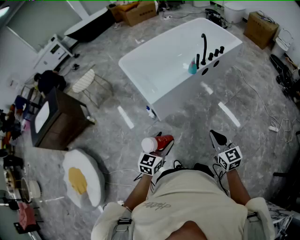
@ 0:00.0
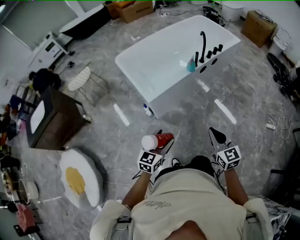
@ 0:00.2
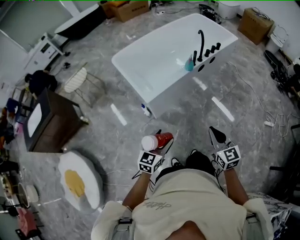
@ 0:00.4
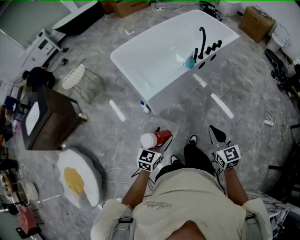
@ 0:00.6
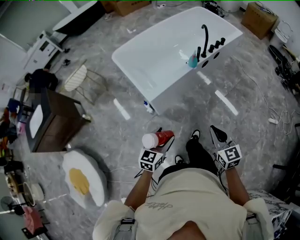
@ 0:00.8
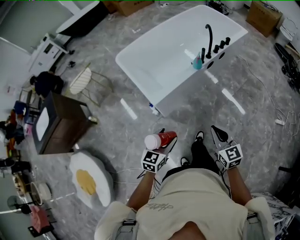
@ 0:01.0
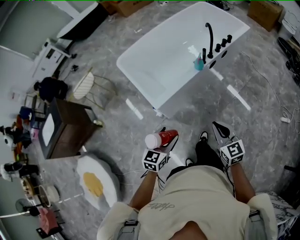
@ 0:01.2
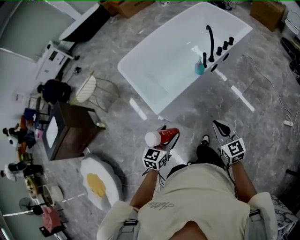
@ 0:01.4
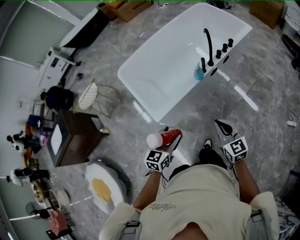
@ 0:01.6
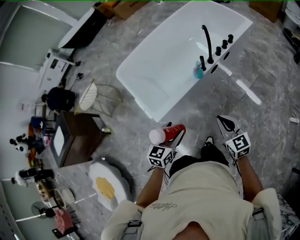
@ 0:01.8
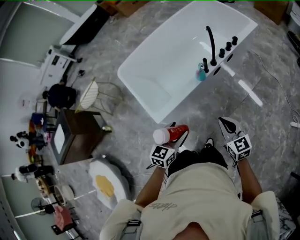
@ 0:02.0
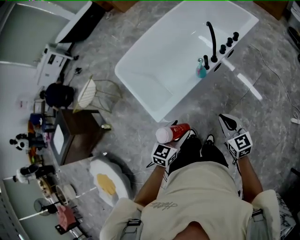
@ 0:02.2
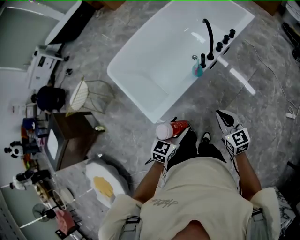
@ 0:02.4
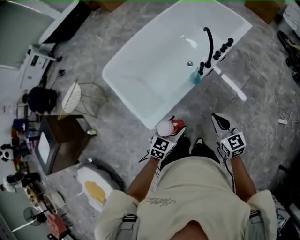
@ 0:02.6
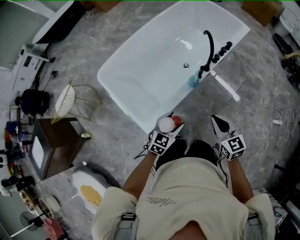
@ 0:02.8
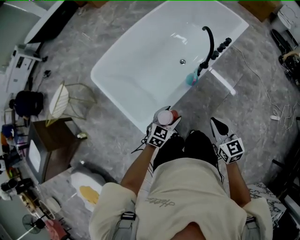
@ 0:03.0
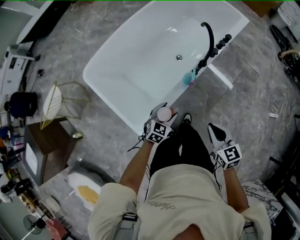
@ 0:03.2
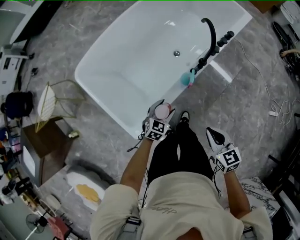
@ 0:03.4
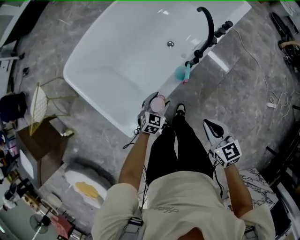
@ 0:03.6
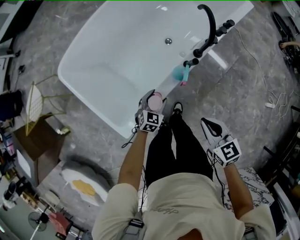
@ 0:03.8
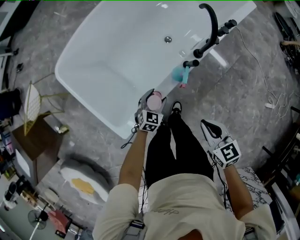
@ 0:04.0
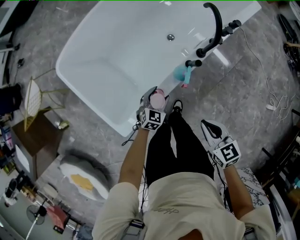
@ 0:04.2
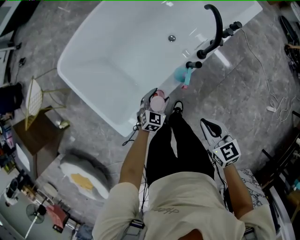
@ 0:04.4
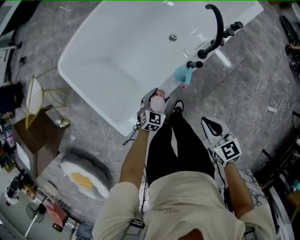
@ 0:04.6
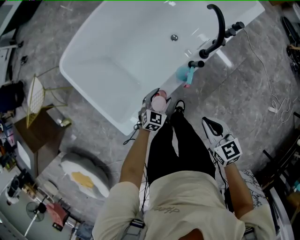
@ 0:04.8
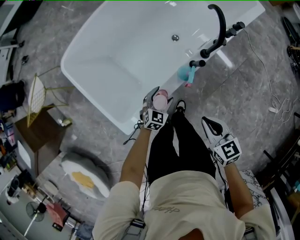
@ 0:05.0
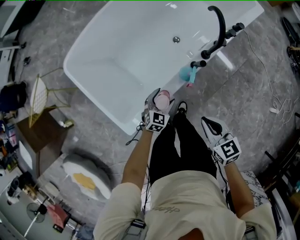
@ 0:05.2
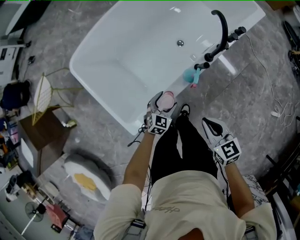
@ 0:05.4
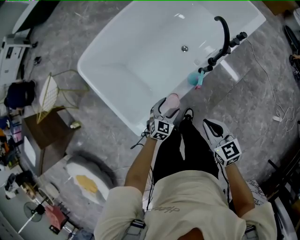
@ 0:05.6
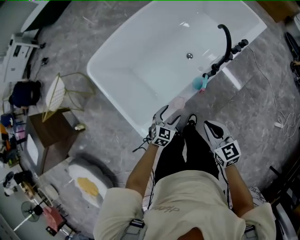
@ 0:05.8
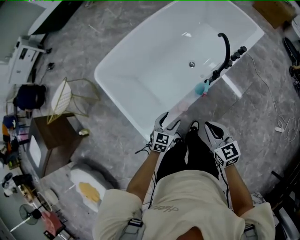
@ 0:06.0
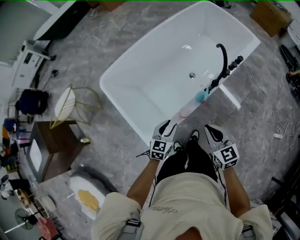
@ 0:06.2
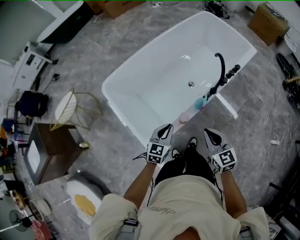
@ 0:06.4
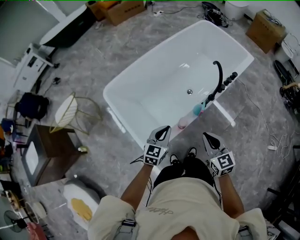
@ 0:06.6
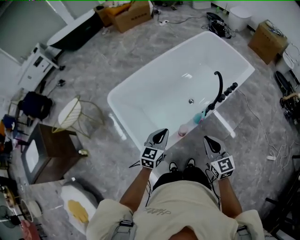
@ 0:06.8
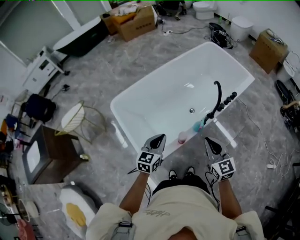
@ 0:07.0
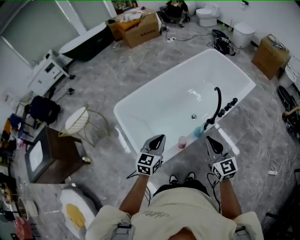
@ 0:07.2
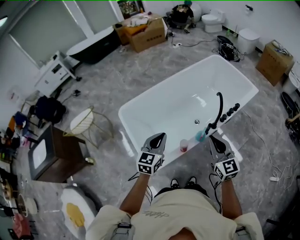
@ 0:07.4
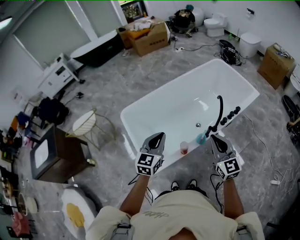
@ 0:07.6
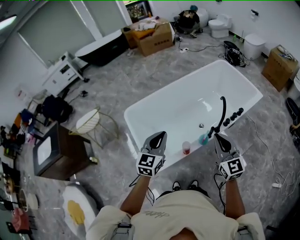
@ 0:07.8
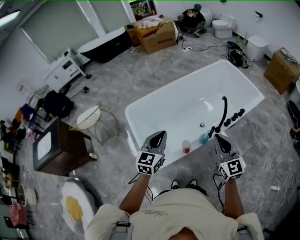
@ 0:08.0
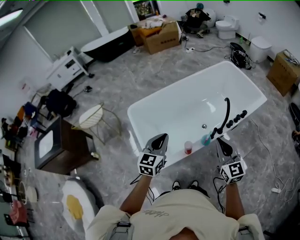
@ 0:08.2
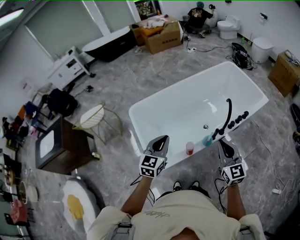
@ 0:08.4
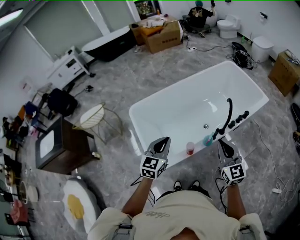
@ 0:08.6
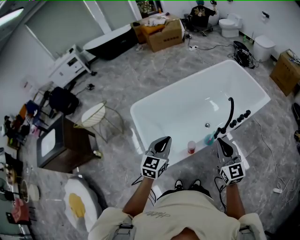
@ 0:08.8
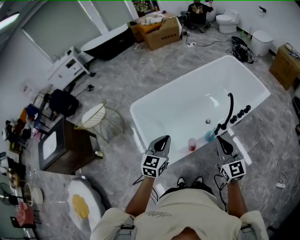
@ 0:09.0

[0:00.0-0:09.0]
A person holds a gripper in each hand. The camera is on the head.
0:00.0 to 0:01.6: The two grippers go some 25 cm forward.
0:01.6 to 0:03.0: The left gripper is displaced forward and downward by some 25 cm, and swivels roughly 20 degrees. The right gripper moves forward, about 15 cm.
0:03.0 to 0:04.4: The right gripper goes approximately 10 cm downward and forward. Meanwhile the left gripper shifts about 20 cm downward and forward.
0:04.4 to 0:06.0: The left gripper is displaced upward, to the left and backward by approximately 15 cm, while the right gripper travels to the left and upward by about 10 cm.
0:06.0 to 0:07.6: The right gripper is displaced upward by some 20 cm, and rotates roughly 30 degrees. Meanwhile the left gripper heads upward, covering roughly 30 cm, changes its angle by some 30 degrees, and closes its fingers.
0:07.6 to 0:09.0: The grippers make only small movements.

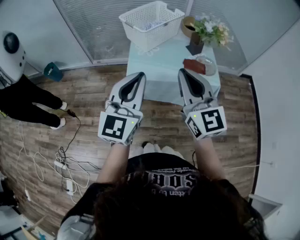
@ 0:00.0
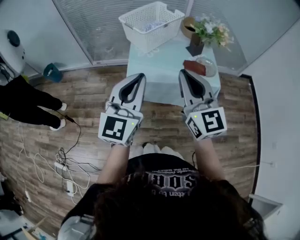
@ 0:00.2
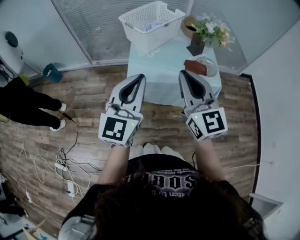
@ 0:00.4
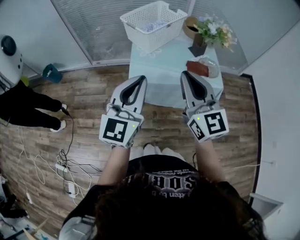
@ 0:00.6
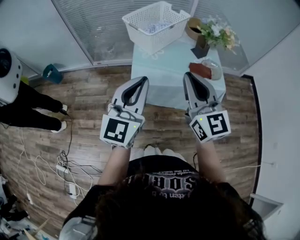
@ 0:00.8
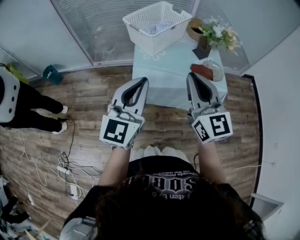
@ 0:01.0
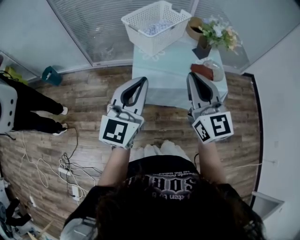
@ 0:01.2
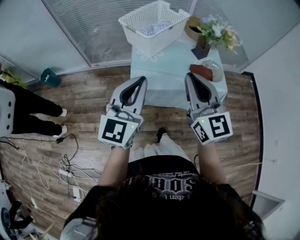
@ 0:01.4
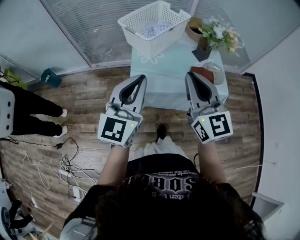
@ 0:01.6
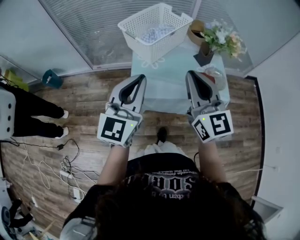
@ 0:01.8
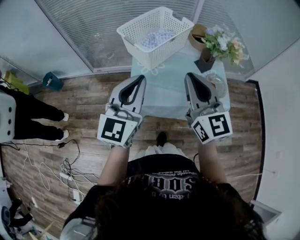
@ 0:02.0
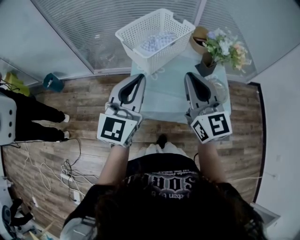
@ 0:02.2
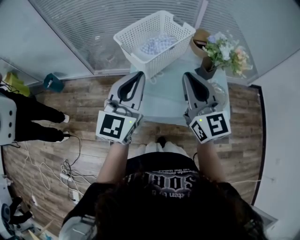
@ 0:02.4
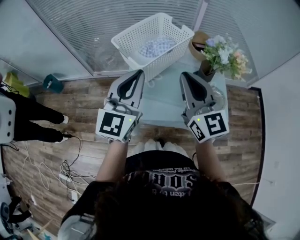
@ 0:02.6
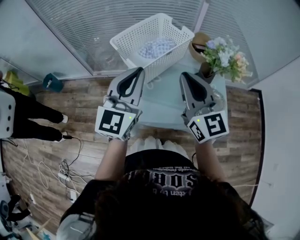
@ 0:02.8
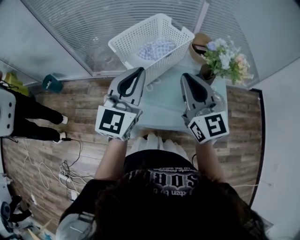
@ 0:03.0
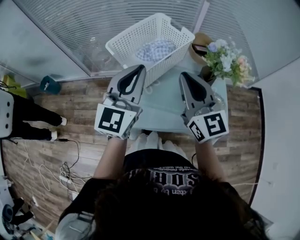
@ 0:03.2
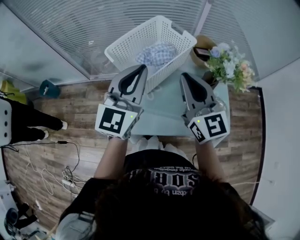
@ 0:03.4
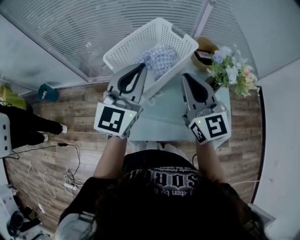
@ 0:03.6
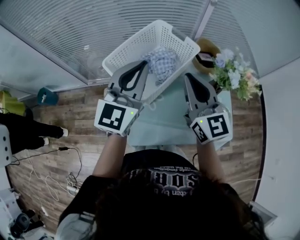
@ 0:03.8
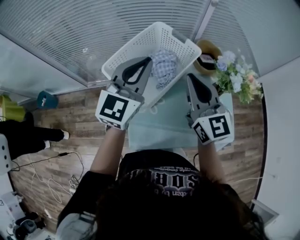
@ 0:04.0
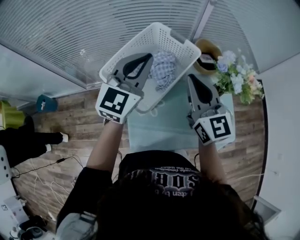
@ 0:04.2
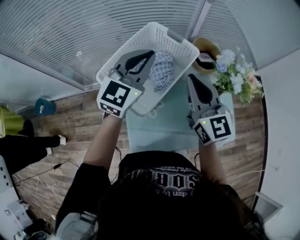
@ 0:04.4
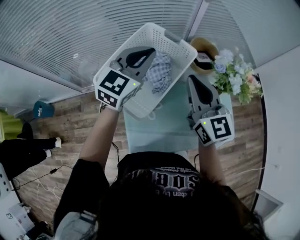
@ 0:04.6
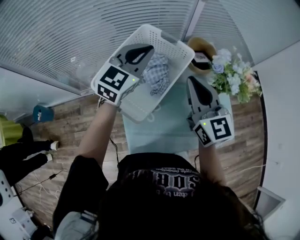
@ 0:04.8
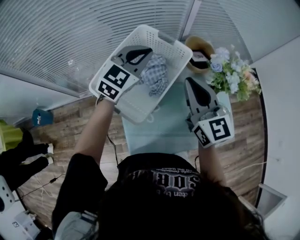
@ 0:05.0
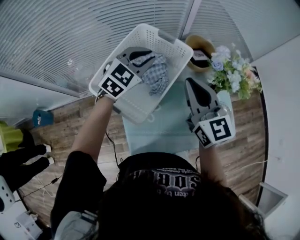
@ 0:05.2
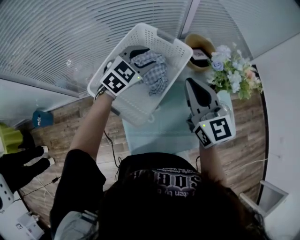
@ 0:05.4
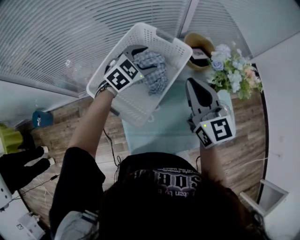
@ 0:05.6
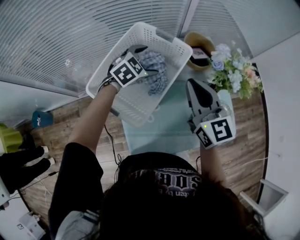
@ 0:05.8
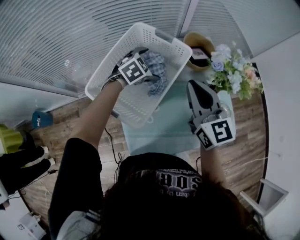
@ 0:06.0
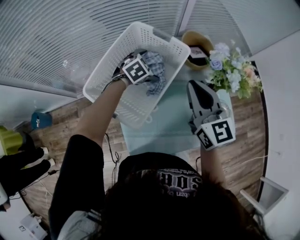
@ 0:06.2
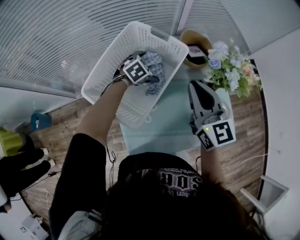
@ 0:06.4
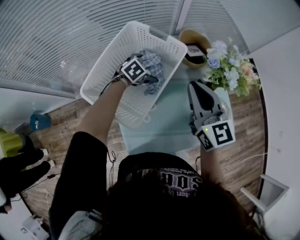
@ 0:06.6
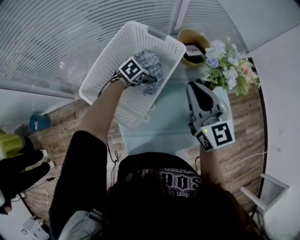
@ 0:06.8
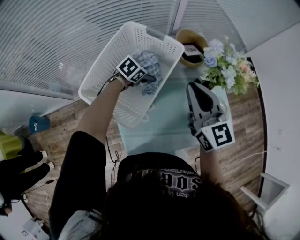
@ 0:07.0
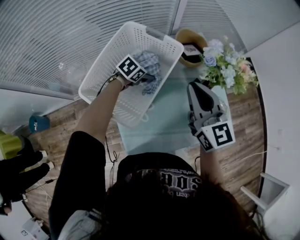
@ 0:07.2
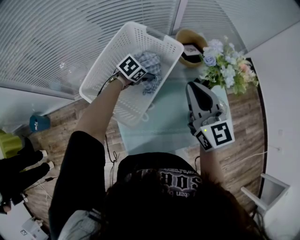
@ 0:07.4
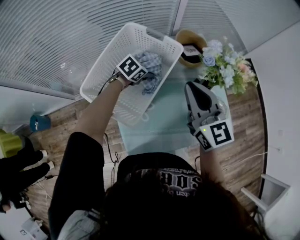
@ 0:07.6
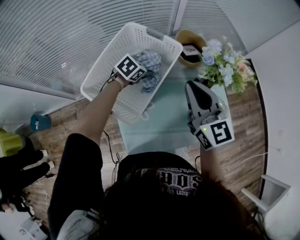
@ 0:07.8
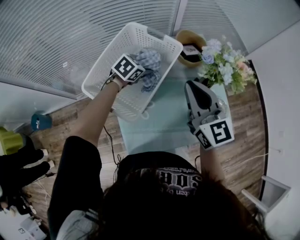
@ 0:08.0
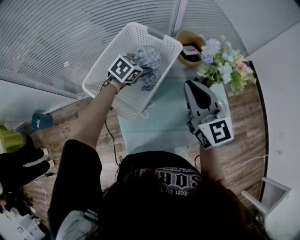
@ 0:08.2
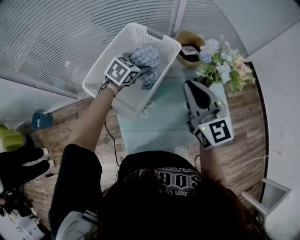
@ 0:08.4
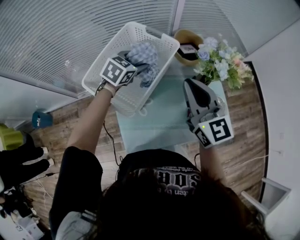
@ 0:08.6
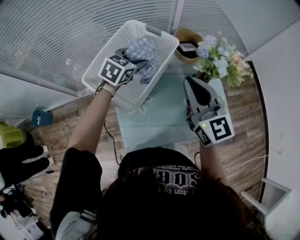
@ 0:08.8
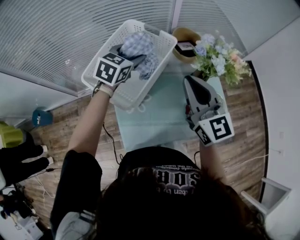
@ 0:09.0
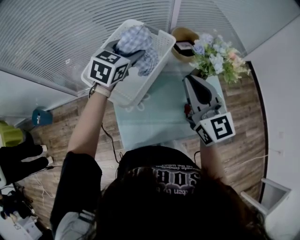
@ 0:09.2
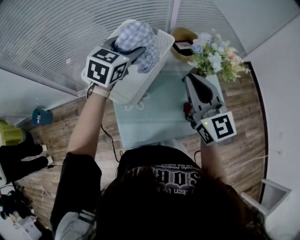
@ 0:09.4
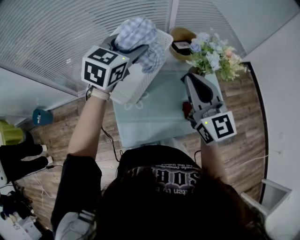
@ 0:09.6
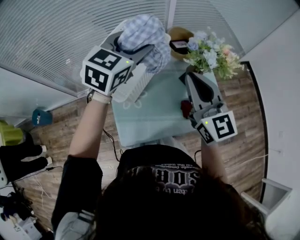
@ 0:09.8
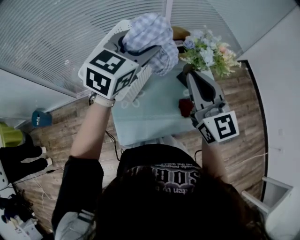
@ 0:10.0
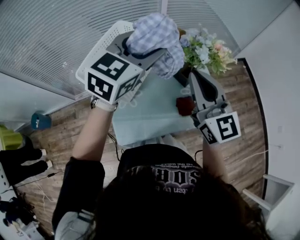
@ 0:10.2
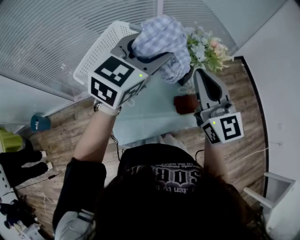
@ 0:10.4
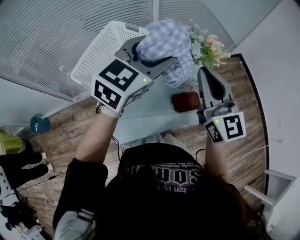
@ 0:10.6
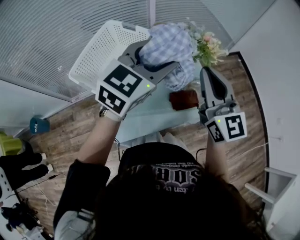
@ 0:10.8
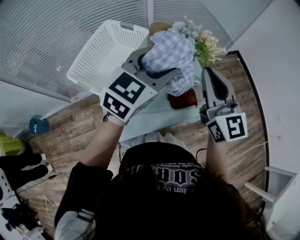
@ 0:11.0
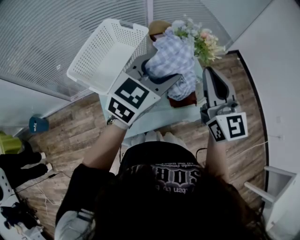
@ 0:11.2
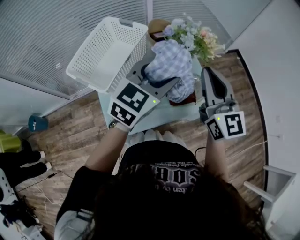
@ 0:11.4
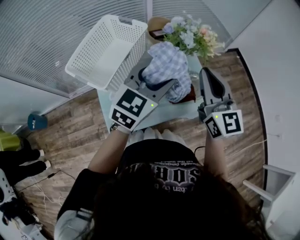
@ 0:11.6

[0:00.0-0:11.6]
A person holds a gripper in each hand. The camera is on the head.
0:00.0 to 0:01.4: Both grippers move forward, approximately 5 cm.
0:01.4 to 0:02.8: Both grippers travel together forward, approximately 20 cm.
0:02.8 to 0:04.4: The grippers both shift forward by roughly 20 cm. The left gripper changes its angle by roughly 20 degrees.
0:04.4 to 0:05.8: The left gripper goes some 20 cm downward and forward, points its fingers about 40 degrees further downward, and opens up.
0:05.8 to 0:07.2: The left gripper shifts approximately 10 cm downward, and changes its angle by some 30 degrees.
0:07.2 to 0:08.8: The left gripper moves upward, some 15 cm, and swivels approximately 30 degrees.
0:08.8 to 0:10.2: The right gripper is displaced to the right and upward by some 10 cm, while the left gripper is displaced upward, to the right and backward by some 25 cm, and turns by approximately 20 degrees.
0:10.2 to 0:11.6: The right gripper goes about 10 cm to the right. The left gripper moves to the right, backward and downward, roughly 15 cm.

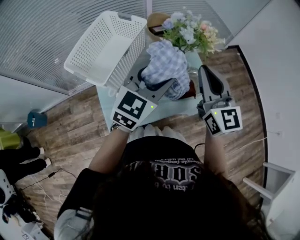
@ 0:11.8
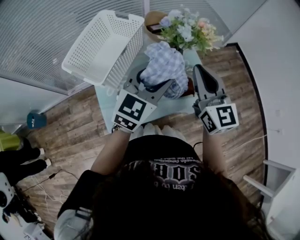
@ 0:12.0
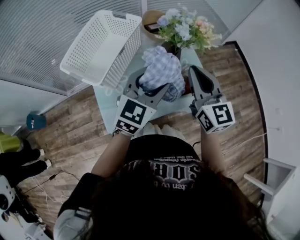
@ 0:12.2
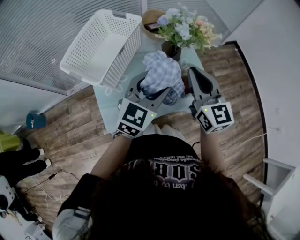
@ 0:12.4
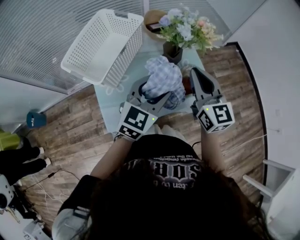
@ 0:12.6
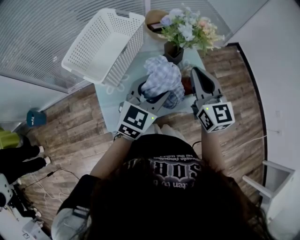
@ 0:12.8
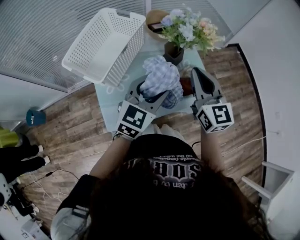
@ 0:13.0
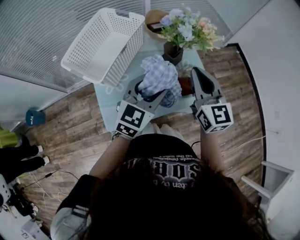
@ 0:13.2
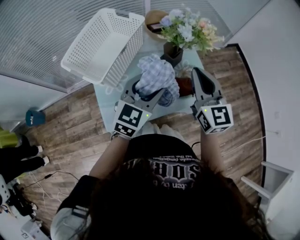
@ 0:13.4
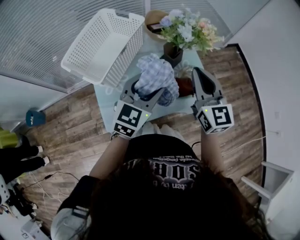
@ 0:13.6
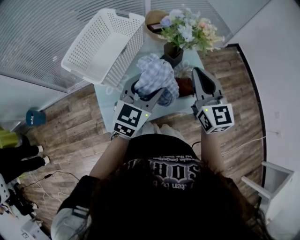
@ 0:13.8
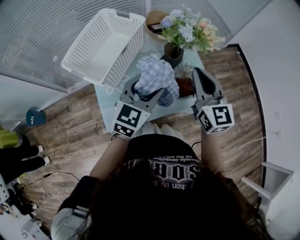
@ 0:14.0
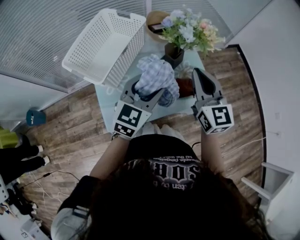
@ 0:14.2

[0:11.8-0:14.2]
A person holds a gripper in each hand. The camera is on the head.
0:11.8 to 0:13.0: Both grippers move downward, some 5 cm.
0:13.0 to 0:14.2: The grippers stay close to where they were, moving slightly.
